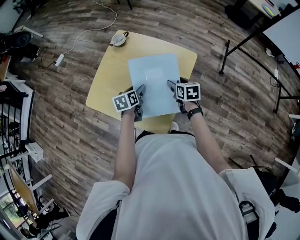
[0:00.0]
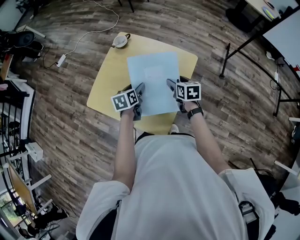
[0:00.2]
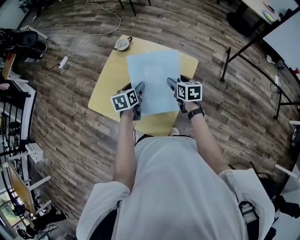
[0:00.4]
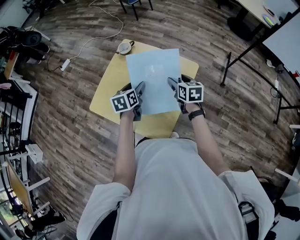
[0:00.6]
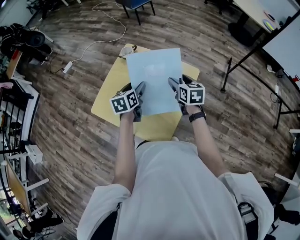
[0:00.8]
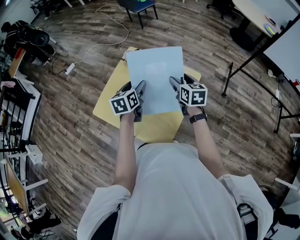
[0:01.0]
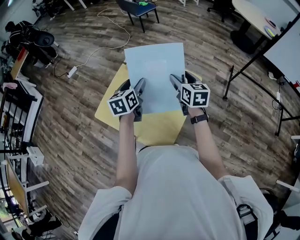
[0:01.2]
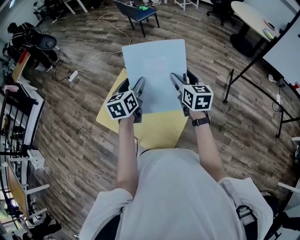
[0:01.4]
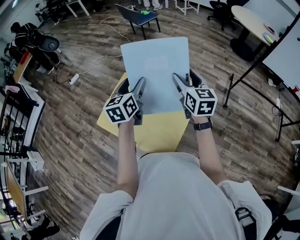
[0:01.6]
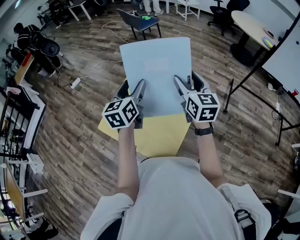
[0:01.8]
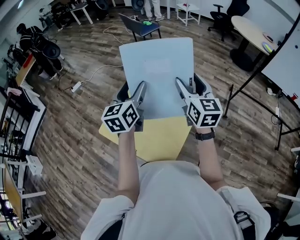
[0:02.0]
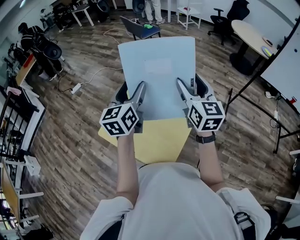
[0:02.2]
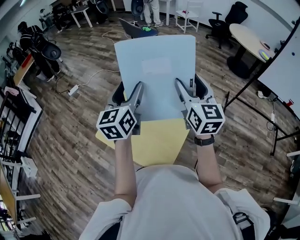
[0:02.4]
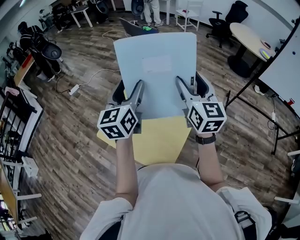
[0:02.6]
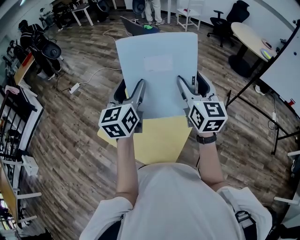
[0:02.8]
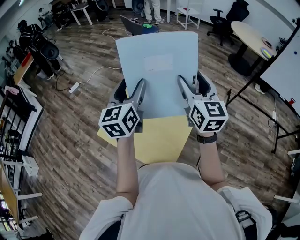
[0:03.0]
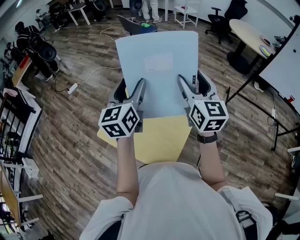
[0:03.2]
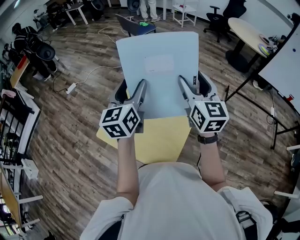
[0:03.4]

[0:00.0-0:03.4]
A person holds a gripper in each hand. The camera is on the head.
0:00.0 to 0:01.6: The two grippers go about 25 cm upward. The left gripper changes its angle by some 30 degrees; the right gripper tips its fingers upward by about 30 degrees.
0:01.6 to 0:03.4: The two grippers go some 10 cm upward.

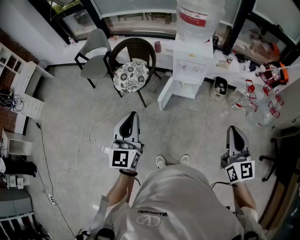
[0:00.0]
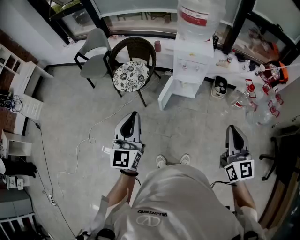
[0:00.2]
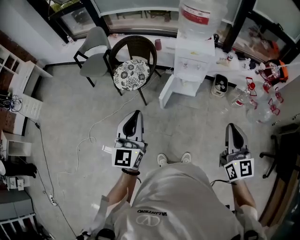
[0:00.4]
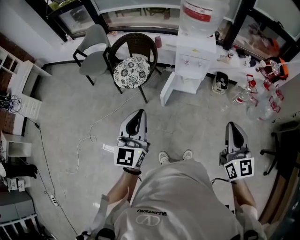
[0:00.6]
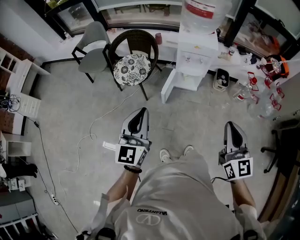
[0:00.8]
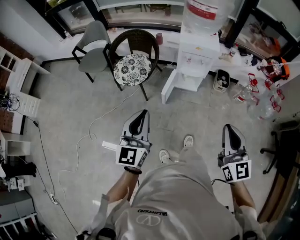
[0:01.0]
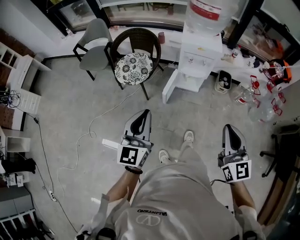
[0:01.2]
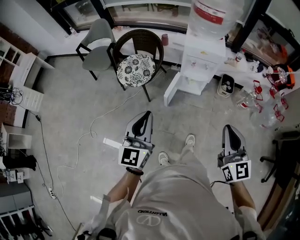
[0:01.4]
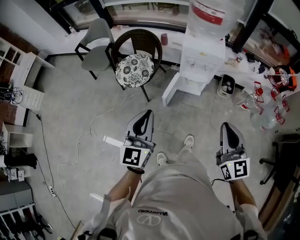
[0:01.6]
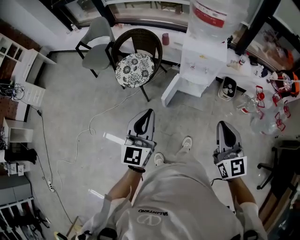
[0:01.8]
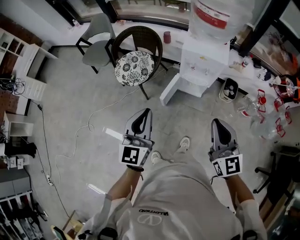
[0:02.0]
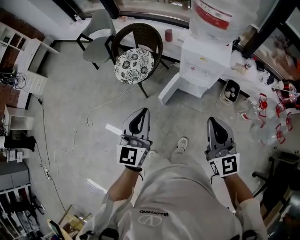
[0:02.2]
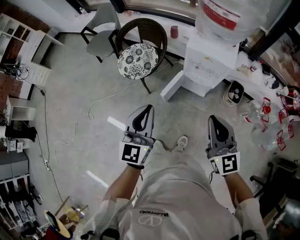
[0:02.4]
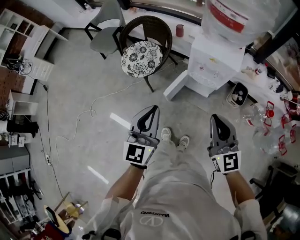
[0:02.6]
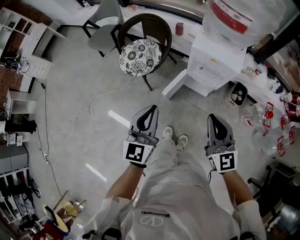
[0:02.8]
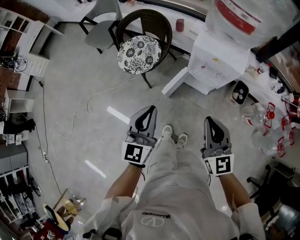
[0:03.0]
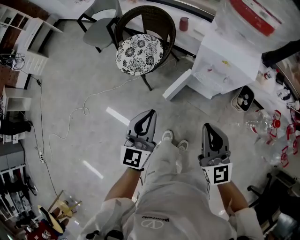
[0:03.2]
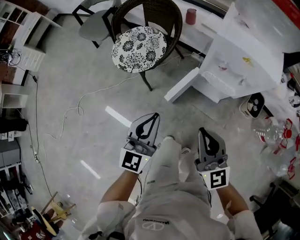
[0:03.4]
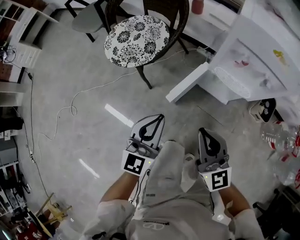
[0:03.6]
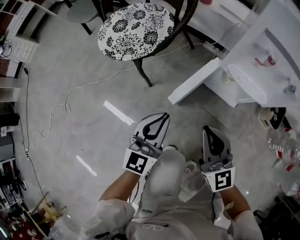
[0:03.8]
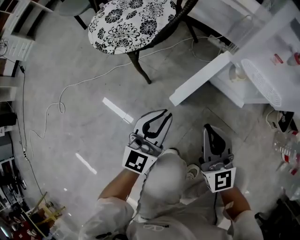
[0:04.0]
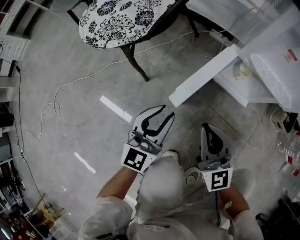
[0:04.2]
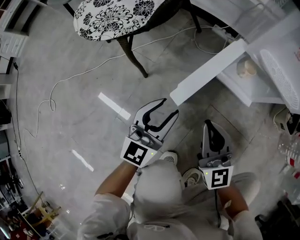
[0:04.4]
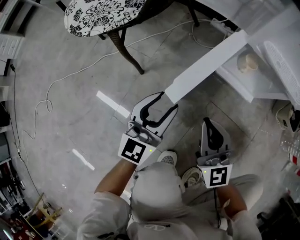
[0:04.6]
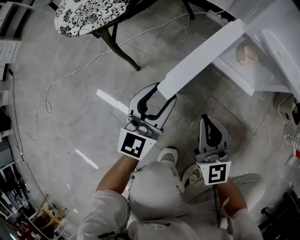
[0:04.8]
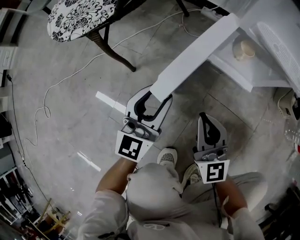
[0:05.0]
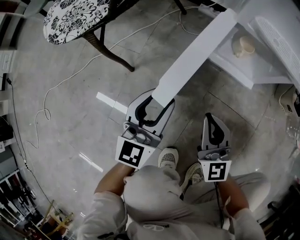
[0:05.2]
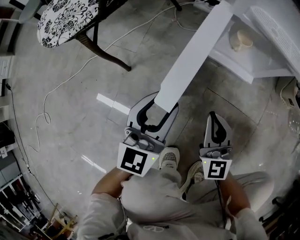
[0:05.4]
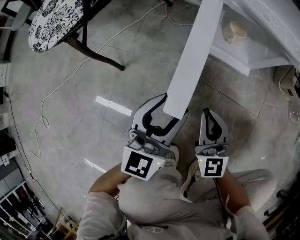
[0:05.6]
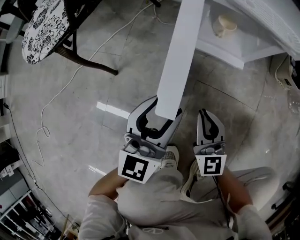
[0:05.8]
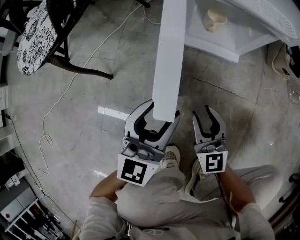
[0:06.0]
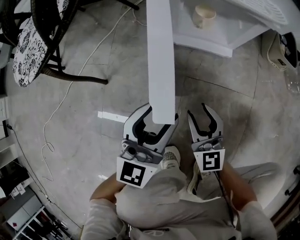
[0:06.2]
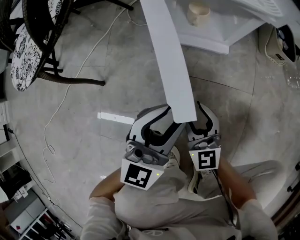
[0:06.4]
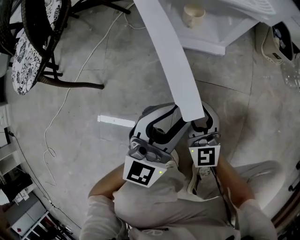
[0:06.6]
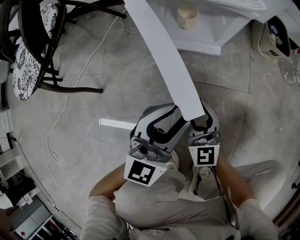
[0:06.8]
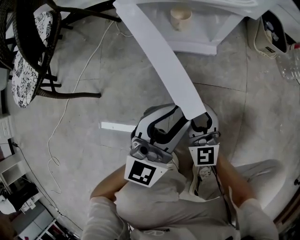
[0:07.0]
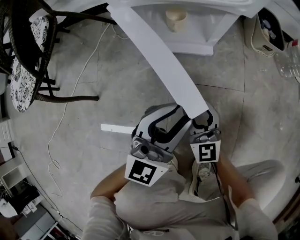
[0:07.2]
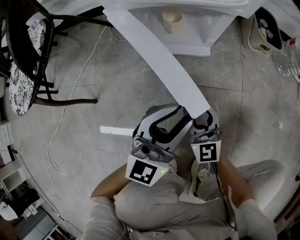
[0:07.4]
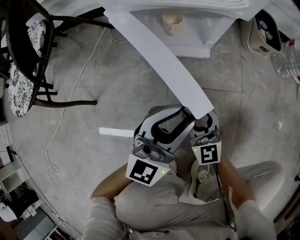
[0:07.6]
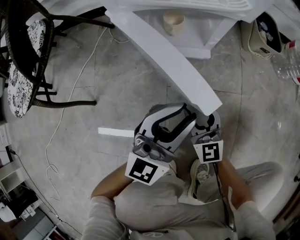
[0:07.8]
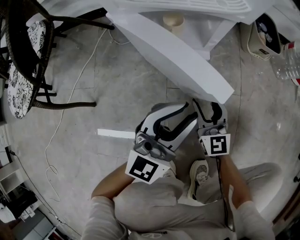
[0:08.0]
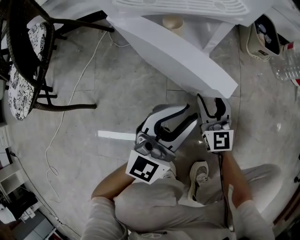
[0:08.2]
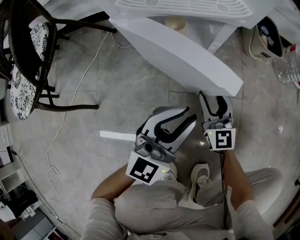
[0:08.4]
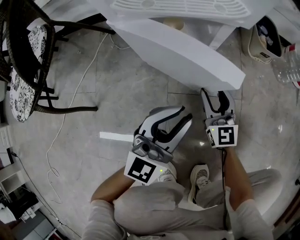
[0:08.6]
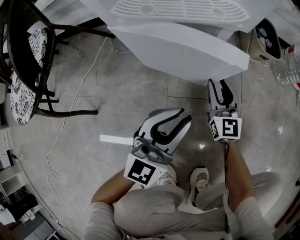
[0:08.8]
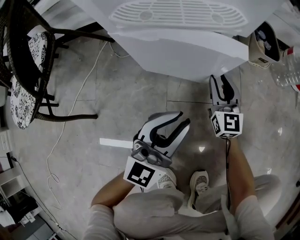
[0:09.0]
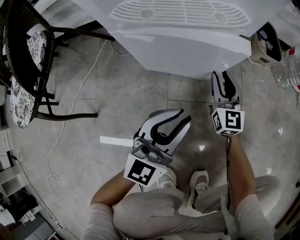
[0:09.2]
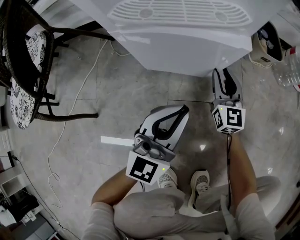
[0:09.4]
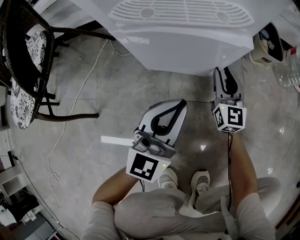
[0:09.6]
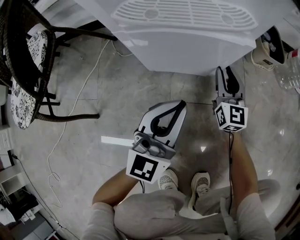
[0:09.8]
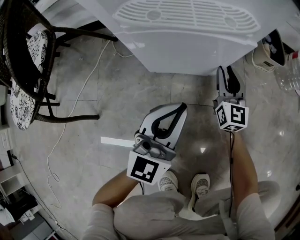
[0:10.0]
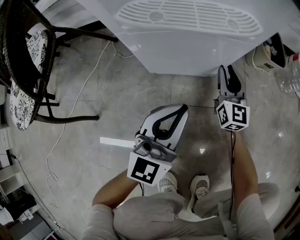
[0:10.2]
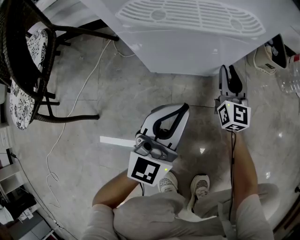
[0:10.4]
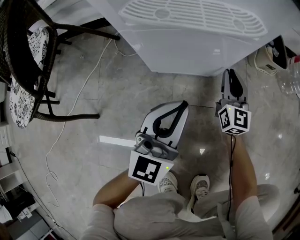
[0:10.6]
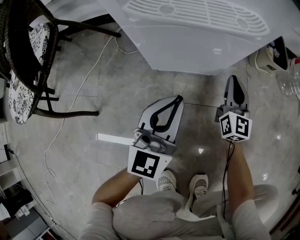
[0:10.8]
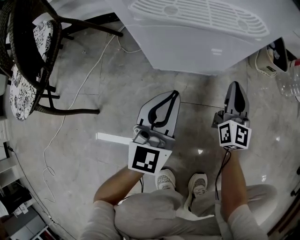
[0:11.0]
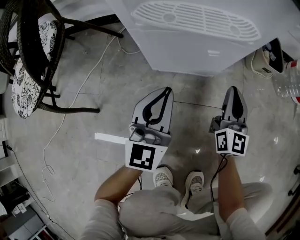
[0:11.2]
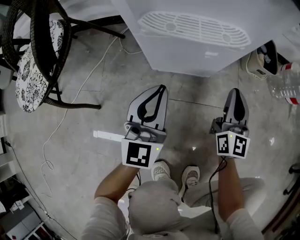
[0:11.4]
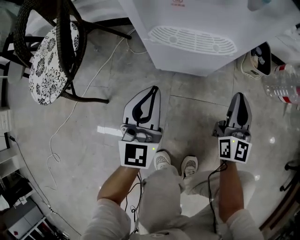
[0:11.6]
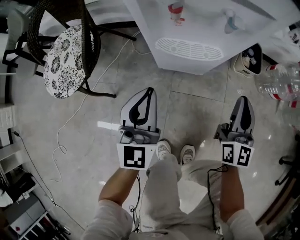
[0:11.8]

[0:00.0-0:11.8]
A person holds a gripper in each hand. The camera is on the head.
0:00.0 to 0:01.4: The left gripper changes place by approximately 5 cm, while the right gripper is displaced to the left by roughly 10 cm.
0:01.4 to 0:03.0: The left gripper heads forward, to the right and downward, covering some 20 cm; the right gripper travels forward and downward by roughly 25 cm.
0:03.0 to 0:04.4: The grippers both shift downward by about 60 cm. The left gripper opens its fingers.
0:04.4 to 0:06.0: The left gripper travels to the right by some 10 cm, while the right gripper moves downward and to the right, some 20 cm, rotates some 20 degrees, and opens its fingers.
0:06.0 to 0:07.4: The left gripper travels to the right by about 15 cm, rotates roughly 20 degrees, and closes up. Meanwhile the right gripper moves to the right, approximately 5 cm.
0:07.4 to 0:08.8: The right gripper travels forward and to the right by roughly 15 cm.
0:08.8 to 0:10.4: The right gripper goes about 10 cm forward. Meanwhile the left gripper moves about 5 cm.
0:10.4 to 0:11.8: The two grippers go about 30 cm upward. The left gripper changes its angle by approximately 20 degrees, while the right gripper closes up.

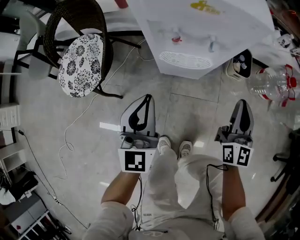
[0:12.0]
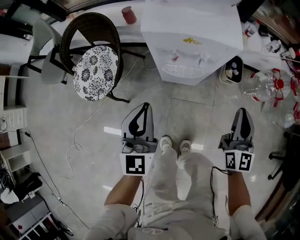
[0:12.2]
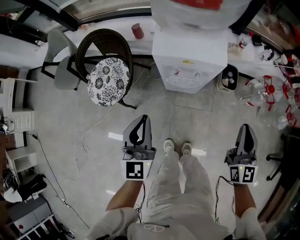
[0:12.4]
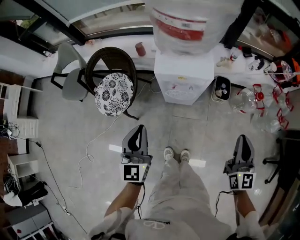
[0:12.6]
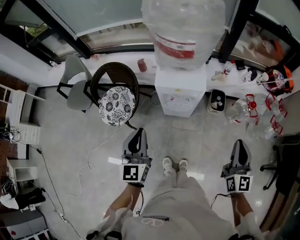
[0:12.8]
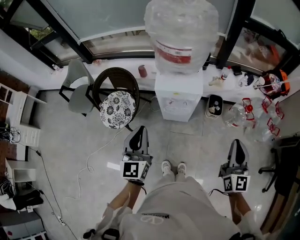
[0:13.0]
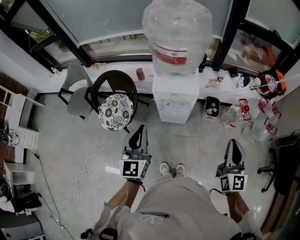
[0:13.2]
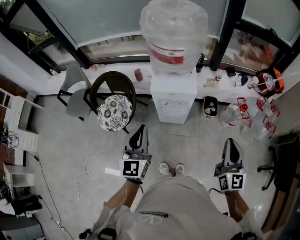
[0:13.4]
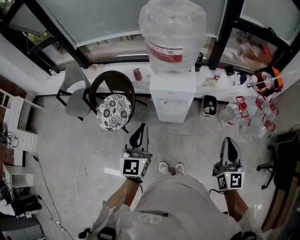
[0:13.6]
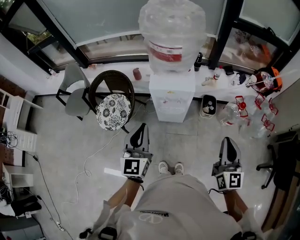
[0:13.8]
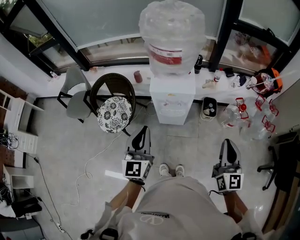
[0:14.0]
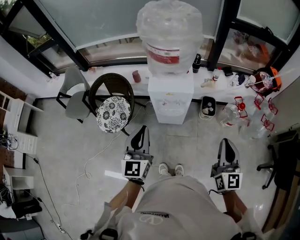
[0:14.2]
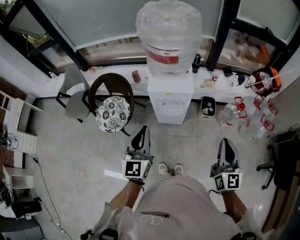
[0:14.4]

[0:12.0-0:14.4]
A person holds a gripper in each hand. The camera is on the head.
0:12.0 to 0:13.2: The grippers both shift upward by roughly 40 cm.
0:13.2 to 0:14.4: The grippers stay close to where they were, moving slightly.

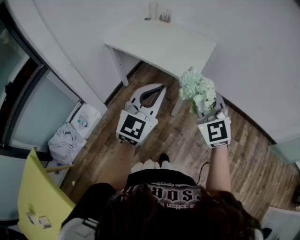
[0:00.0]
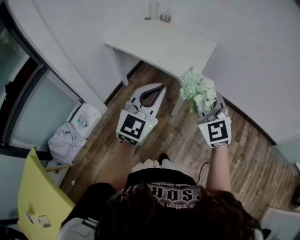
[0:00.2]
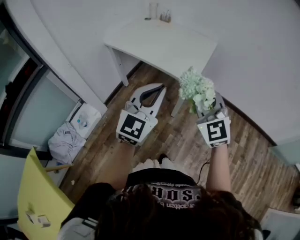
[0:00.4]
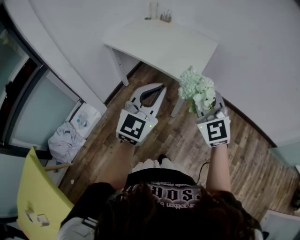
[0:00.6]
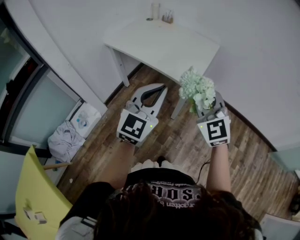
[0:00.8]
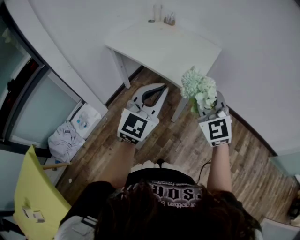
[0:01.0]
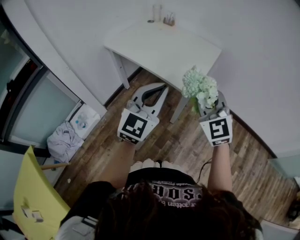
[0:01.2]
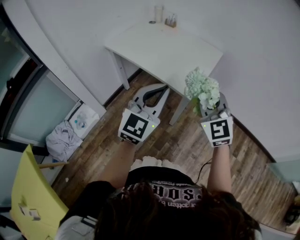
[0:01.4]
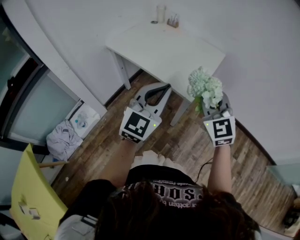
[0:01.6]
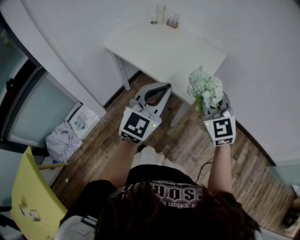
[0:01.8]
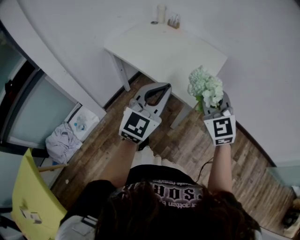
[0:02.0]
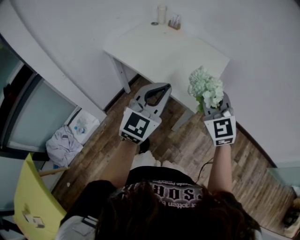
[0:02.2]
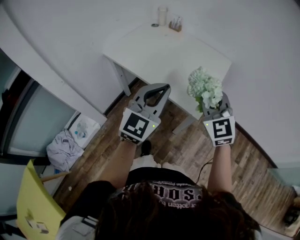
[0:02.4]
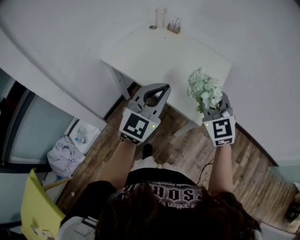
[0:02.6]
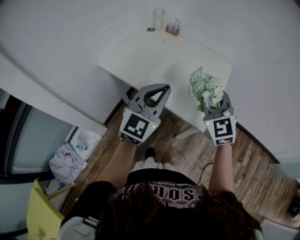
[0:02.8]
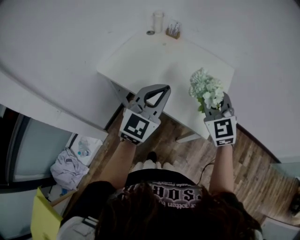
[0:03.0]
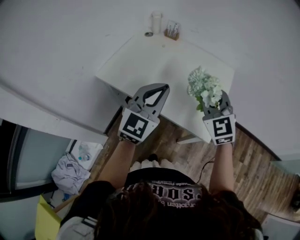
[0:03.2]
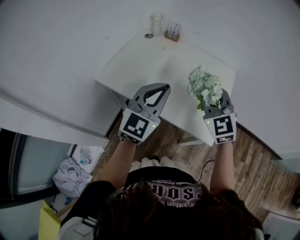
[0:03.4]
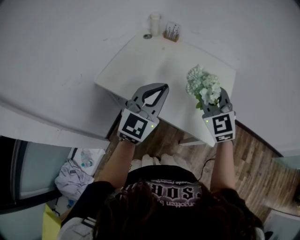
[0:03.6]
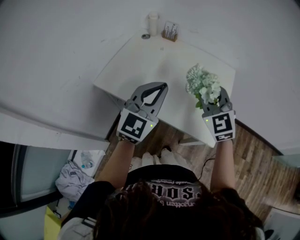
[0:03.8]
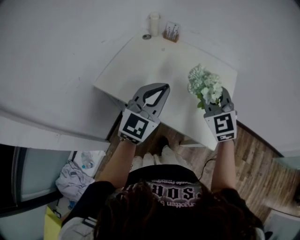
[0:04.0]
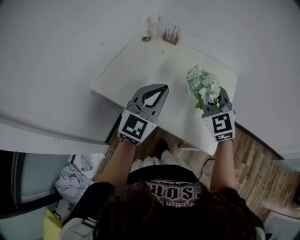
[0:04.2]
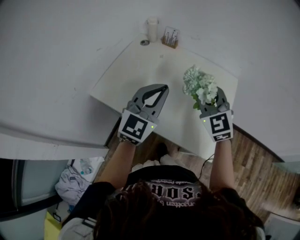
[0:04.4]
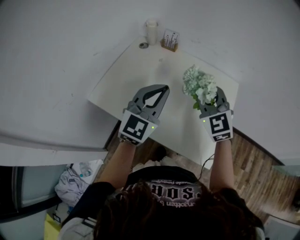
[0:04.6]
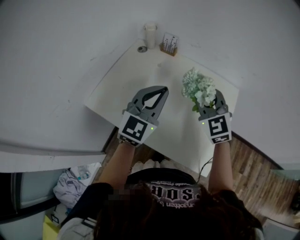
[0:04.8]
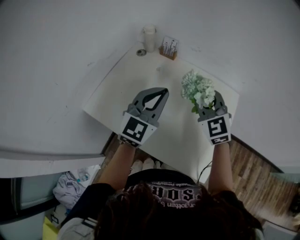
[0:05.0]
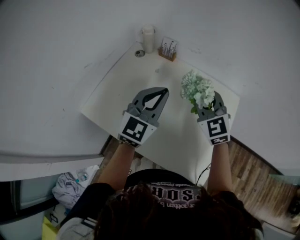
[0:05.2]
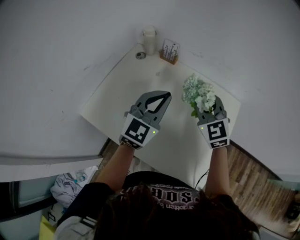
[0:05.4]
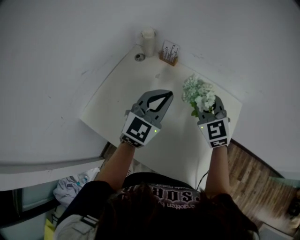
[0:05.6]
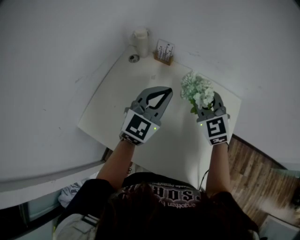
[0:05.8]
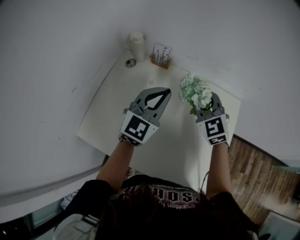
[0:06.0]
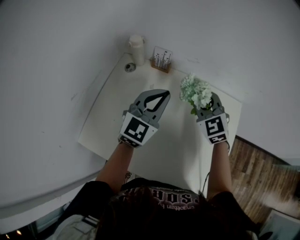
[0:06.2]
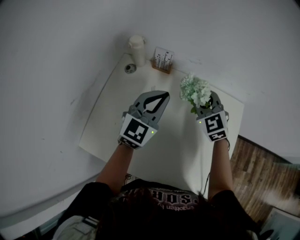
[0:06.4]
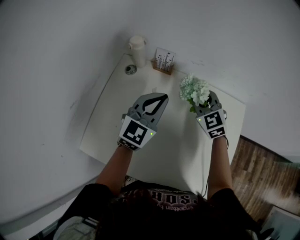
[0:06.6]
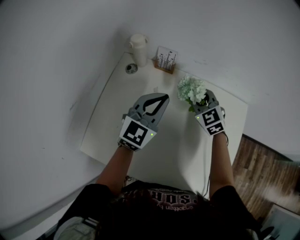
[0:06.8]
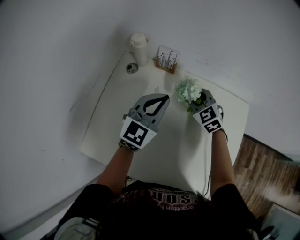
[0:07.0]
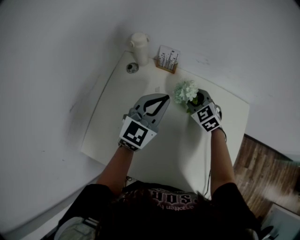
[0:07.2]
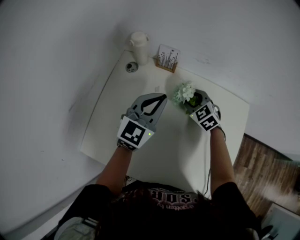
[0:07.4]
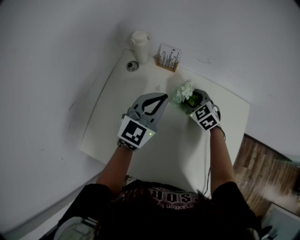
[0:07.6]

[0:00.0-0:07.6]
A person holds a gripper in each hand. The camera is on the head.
0:00.0 to 0:01.6: Both grippers move forward and to the right, roughly 15 cm.
0:01.6 to 0:03.0: The grippers both shift forward and to the left by about 25 cm.
0:03.0 to 0:04.6: Both grippers travel together forward, about 20 cm.
0:04.6 to 0:06.0: Both grippers move forward, roughly 20 cm.
0:06.0 to 0:07.6: The right gripper travels downward and forward by approximately 20 cm, turns by about 30 degrees, and opens up, while the left gripper heads to the left, downward and forward, covering roughly 10 cm.
